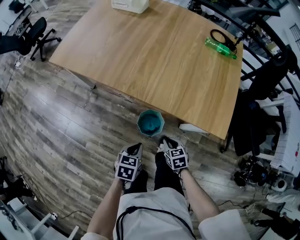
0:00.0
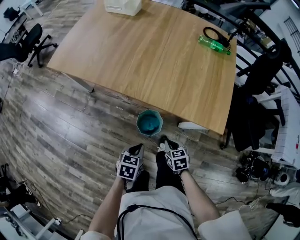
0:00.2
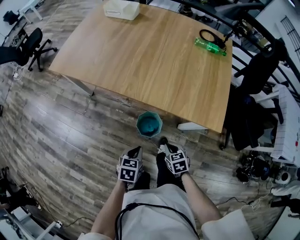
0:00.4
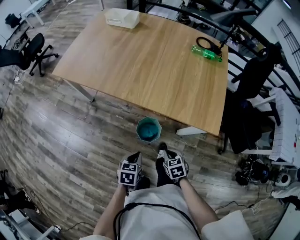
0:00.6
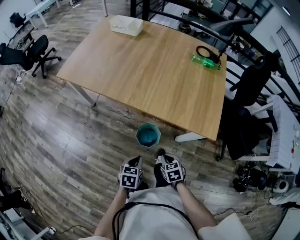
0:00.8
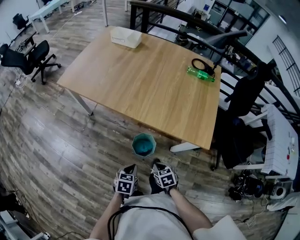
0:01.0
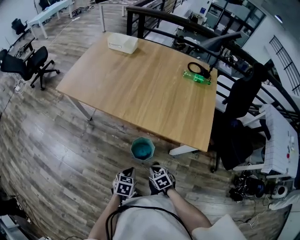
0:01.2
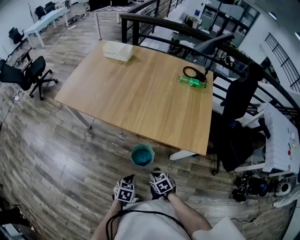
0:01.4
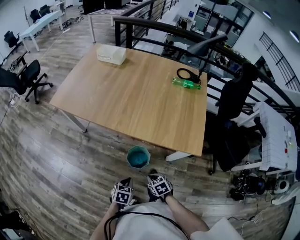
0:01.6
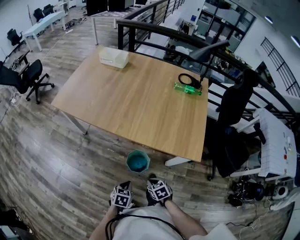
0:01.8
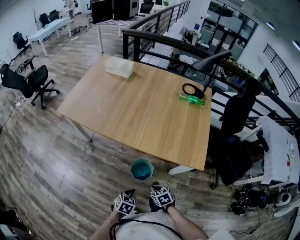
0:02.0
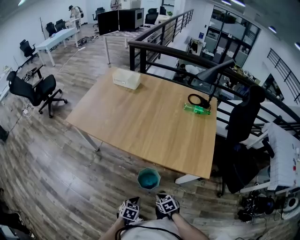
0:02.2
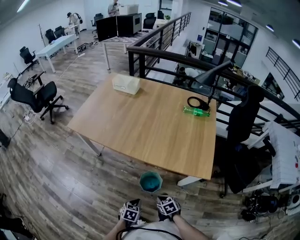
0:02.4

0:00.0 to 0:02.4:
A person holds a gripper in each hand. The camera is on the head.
0:00.0 to 0:01.2: Both grippers travel together backward, some 5 cm.
0:01.2 to 0:02.4: There are only small adjustments of the grippers.

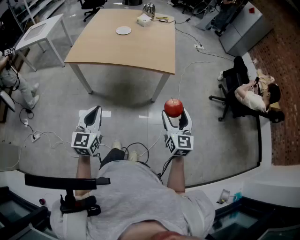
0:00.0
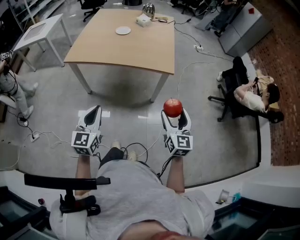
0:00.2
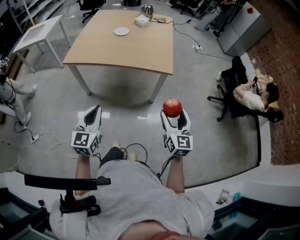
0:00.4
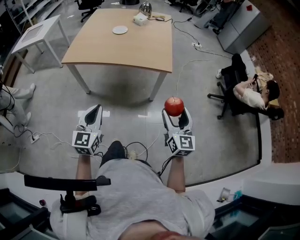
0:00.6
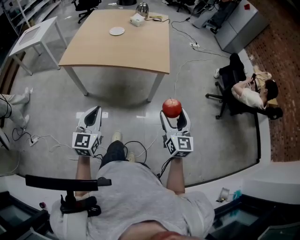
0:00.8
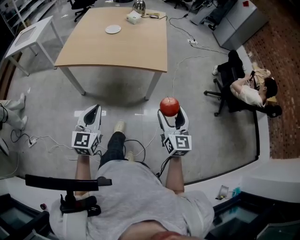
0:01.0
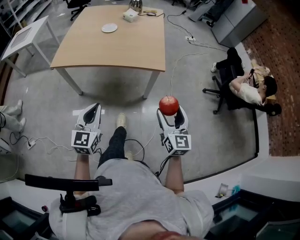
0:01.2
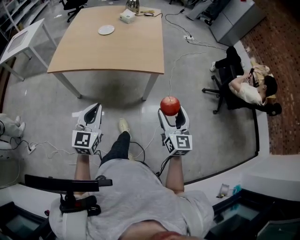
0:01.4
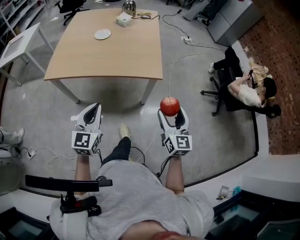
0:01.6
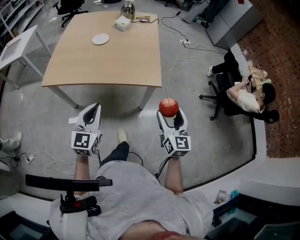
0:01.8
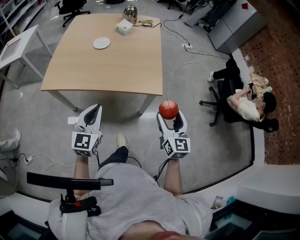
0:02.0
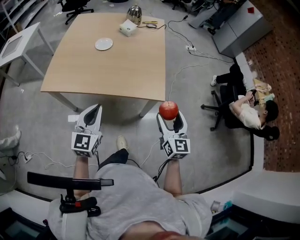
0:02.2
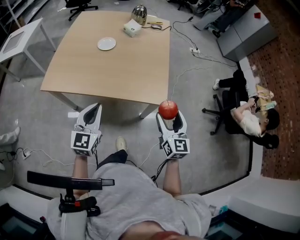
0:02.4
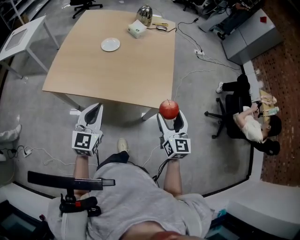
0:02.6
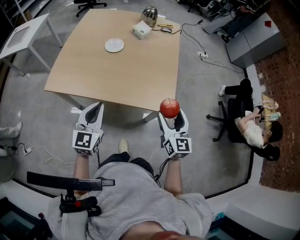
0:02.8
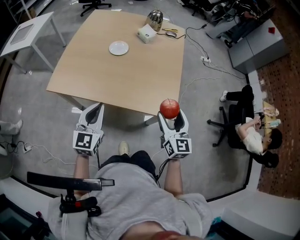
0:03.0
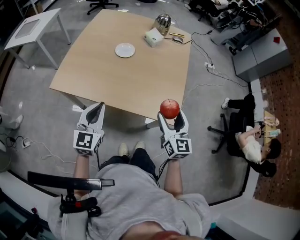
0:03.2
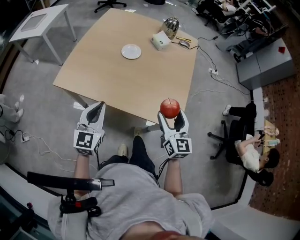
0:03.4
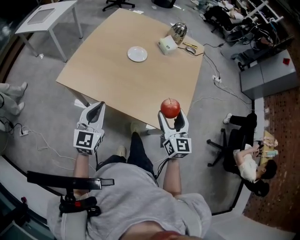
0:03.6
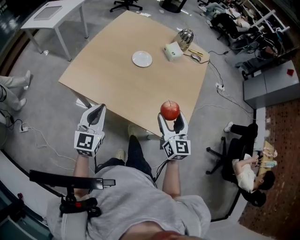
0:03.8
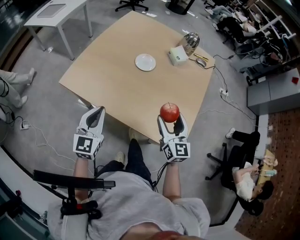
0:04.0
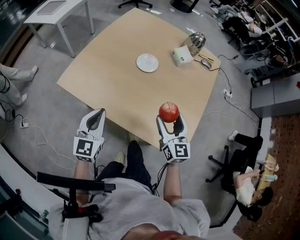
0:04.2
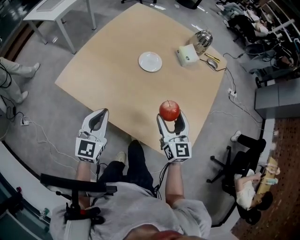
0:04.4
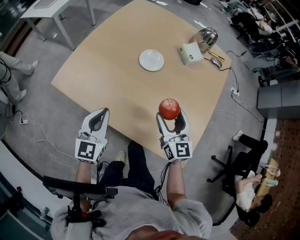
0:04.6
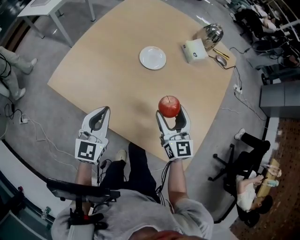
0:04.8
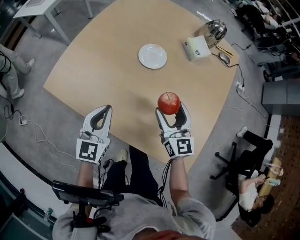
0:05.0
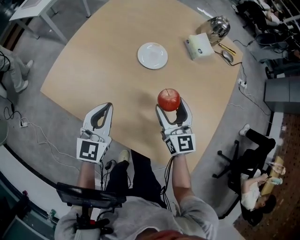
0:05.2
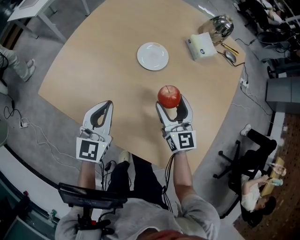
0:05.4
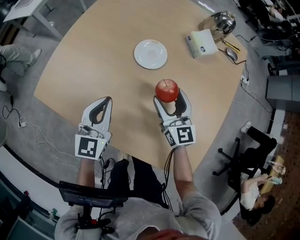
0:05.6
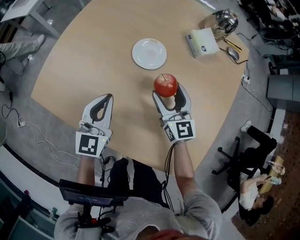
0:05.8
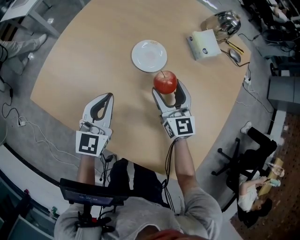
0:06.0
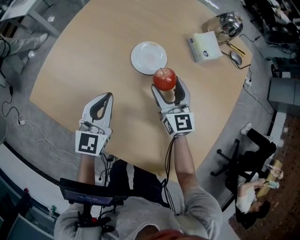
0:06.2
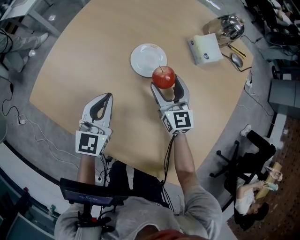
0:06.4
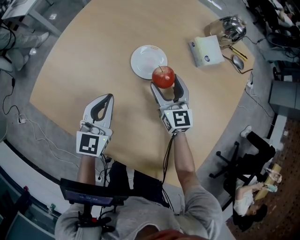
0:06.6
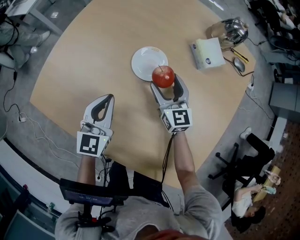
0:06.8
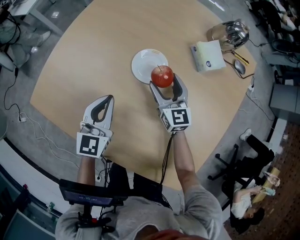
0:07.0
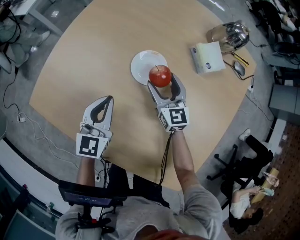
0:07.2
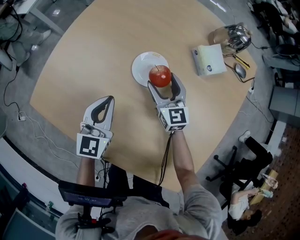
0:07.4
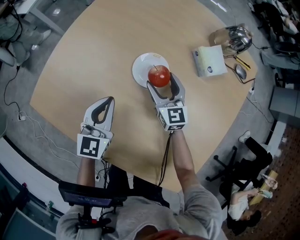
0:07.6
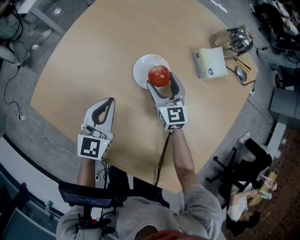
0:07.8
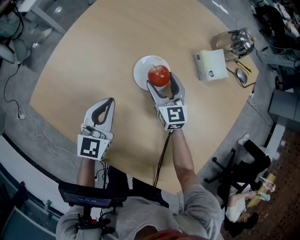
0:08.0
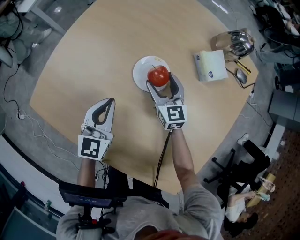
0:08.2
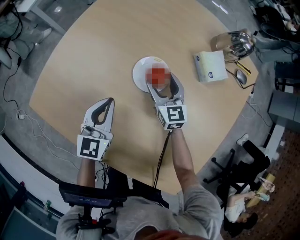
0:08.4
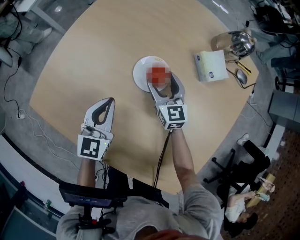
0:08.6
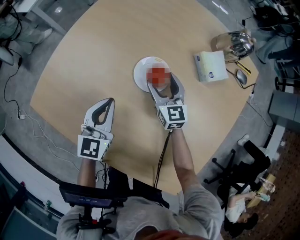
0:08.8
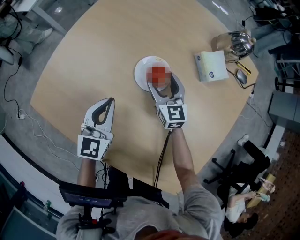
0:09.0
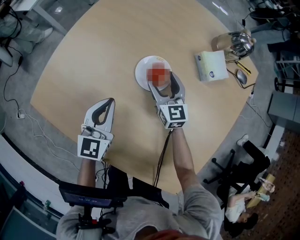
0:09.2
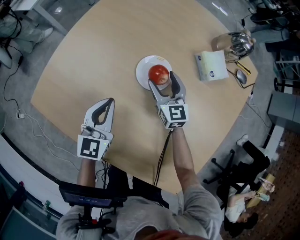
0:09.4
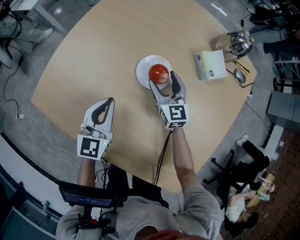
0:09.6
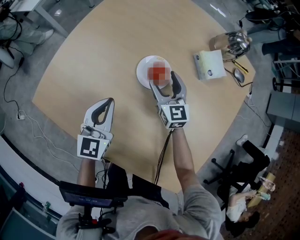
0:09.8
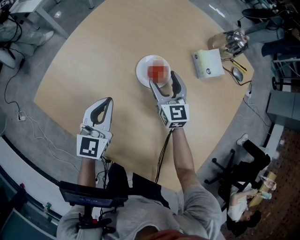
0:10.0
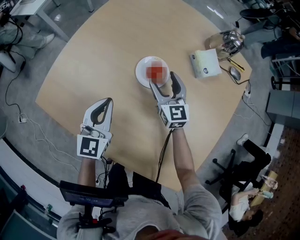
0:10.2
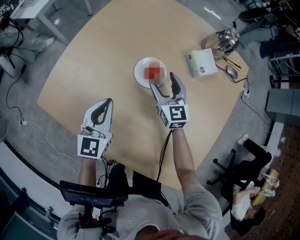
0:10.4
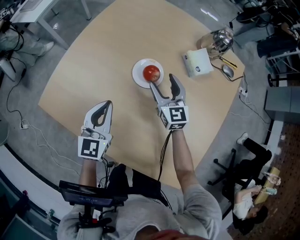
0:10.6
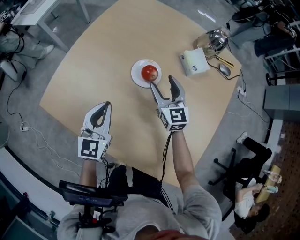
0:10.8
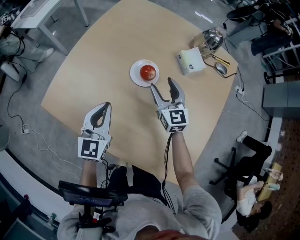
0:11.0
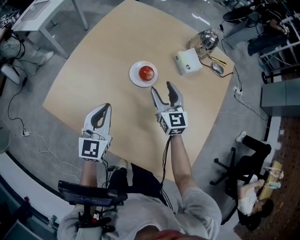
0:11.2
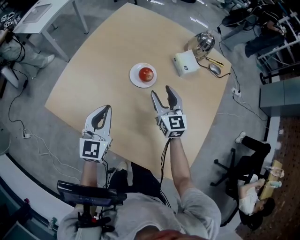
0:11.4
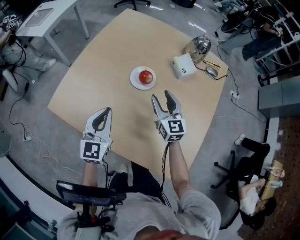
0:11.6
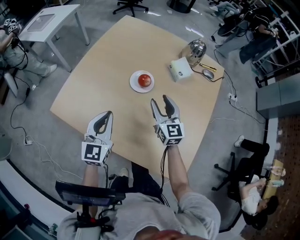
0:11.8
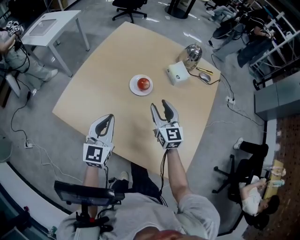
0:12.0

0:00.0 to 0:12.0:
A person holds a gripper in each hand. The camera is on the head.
0:00.0 to 0:01.6: The left gripper travels forward and to the right by approximately 15 cm. Meanwhile the right gripper is displaced forward by about 10 cm.
0:01.6 to 0:03.0: Both grippers move forward, some 25 cm.
0:03.0 to 0:04.4: The right gripper travels forward and to the left by roughly 25 cm, and changes its angle by roughly 20 degrees; the left gripper goes roughly 15 cm forward, downward and to the left.
0:04.4 to 0:06.0: Both grippers move forward and downward, some 25 cm.
0:06.0 to 0:07.6: The left gripper travels forward by some 5 cm, while the right gripper goes approximately 10 cm forward.
0:07.6 to 0:09.0: There are only small adjustments of the grippers.
0:09.0 to 0:10.4: Both grippers travel together upward, some 5 cm.
0:10.4 to 0:12.0: Both grippers travel together backward and upward, about 15 cm. The right gripper closes up.

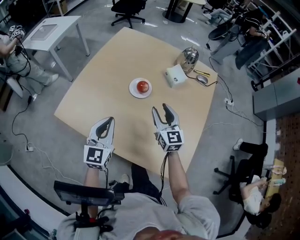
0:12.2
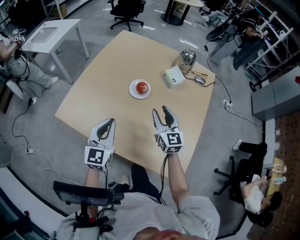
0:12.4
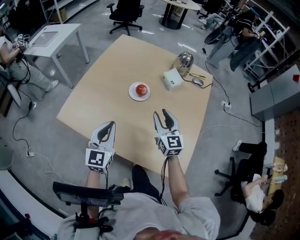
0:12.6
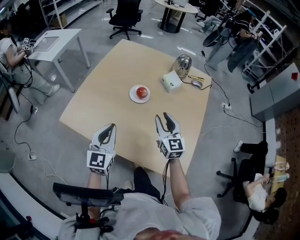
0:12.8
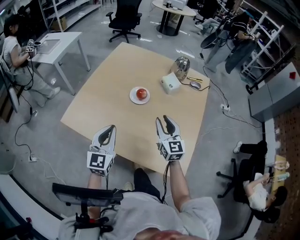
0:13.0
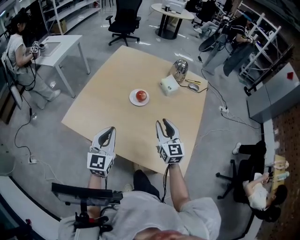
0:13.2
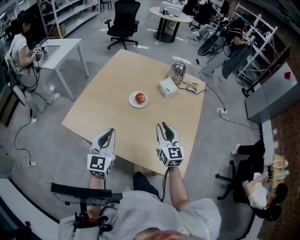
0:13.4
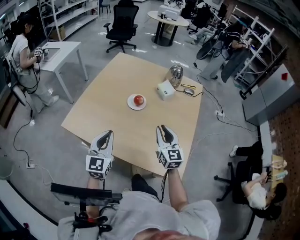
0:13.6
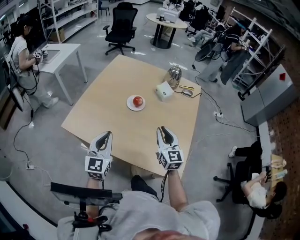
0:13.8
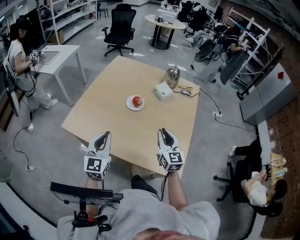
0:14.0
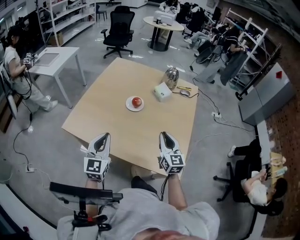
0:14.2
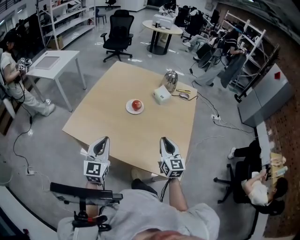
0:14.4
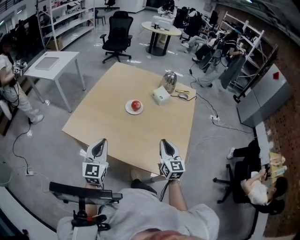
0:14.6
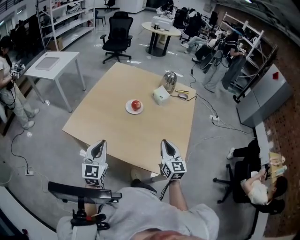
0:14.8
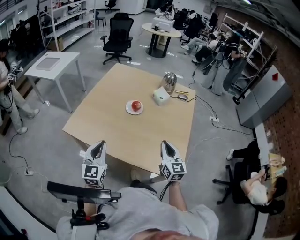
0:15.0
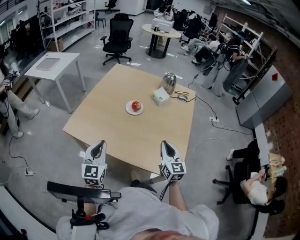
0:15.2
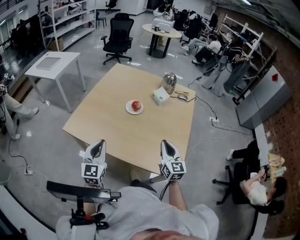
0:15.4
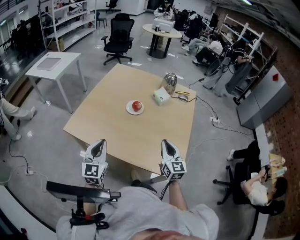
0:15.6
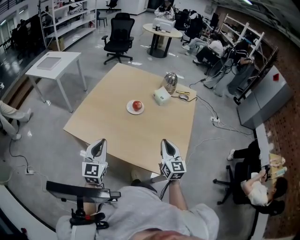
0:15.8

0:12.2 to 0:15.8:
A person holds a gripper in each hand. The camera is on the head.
0:12.2 to 0:14.0: Both grippers move backward and upward, about 15 cm. The right gripper closes its fingers.
0:14.0 to 0:15.8: The right gripper shifts some 5 cm backward, while the left gripper shifts by some 5 cm.

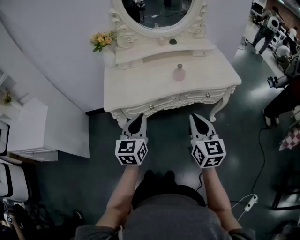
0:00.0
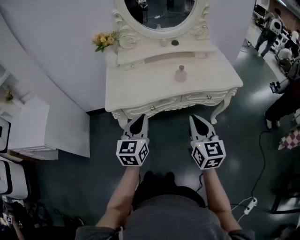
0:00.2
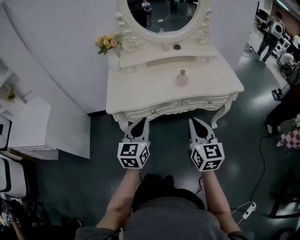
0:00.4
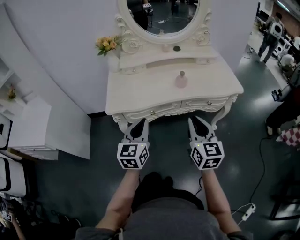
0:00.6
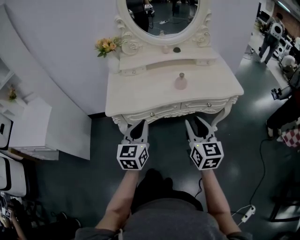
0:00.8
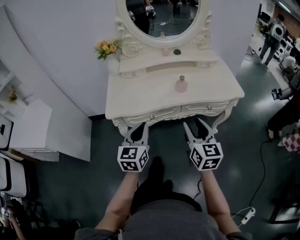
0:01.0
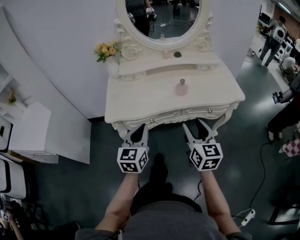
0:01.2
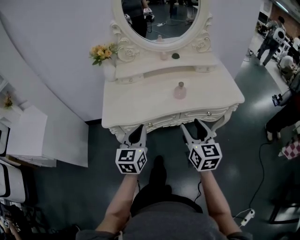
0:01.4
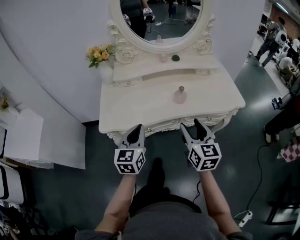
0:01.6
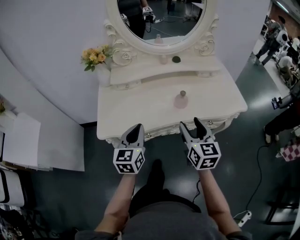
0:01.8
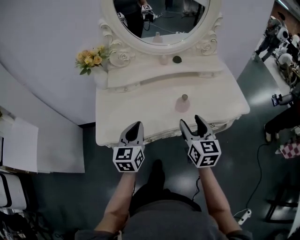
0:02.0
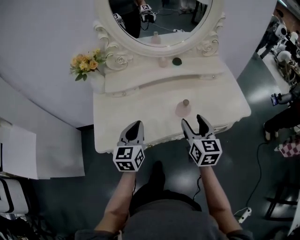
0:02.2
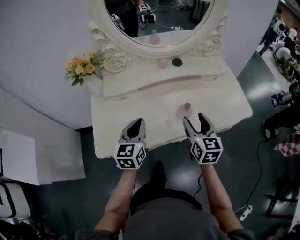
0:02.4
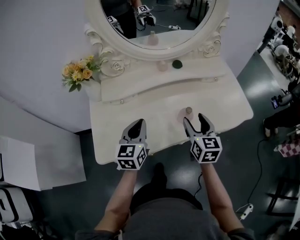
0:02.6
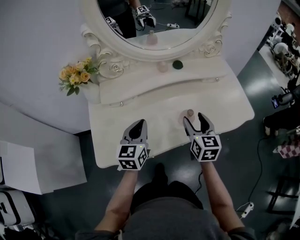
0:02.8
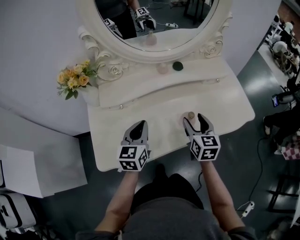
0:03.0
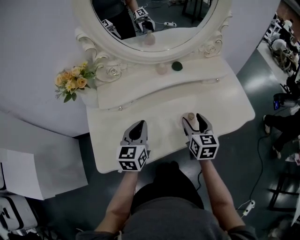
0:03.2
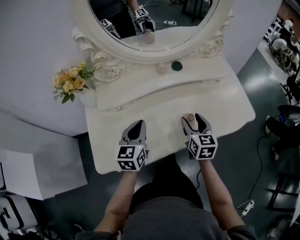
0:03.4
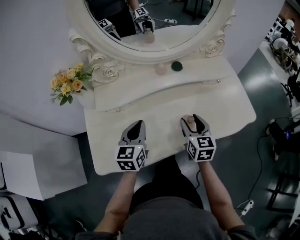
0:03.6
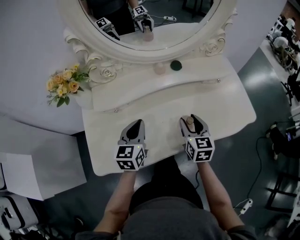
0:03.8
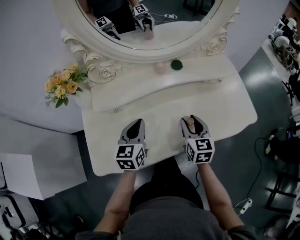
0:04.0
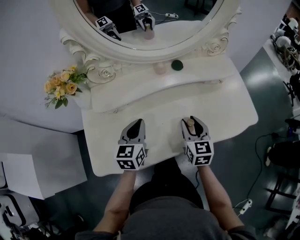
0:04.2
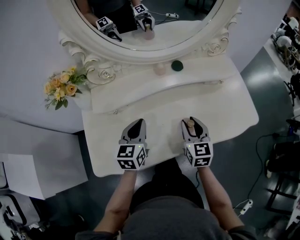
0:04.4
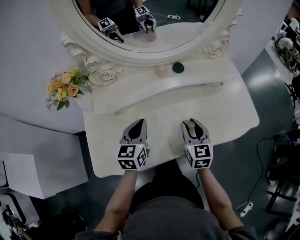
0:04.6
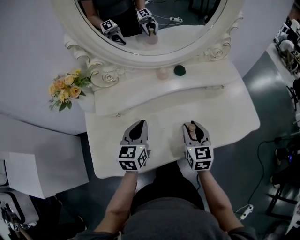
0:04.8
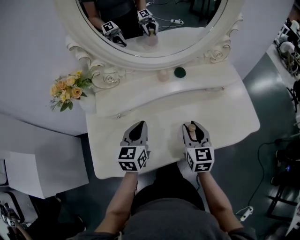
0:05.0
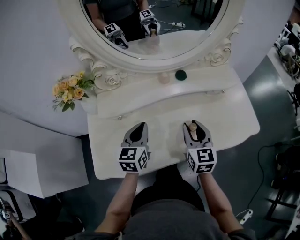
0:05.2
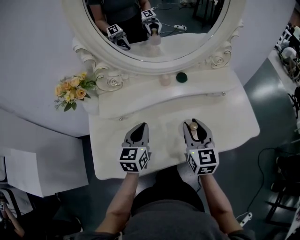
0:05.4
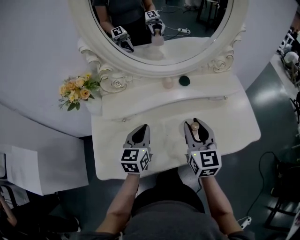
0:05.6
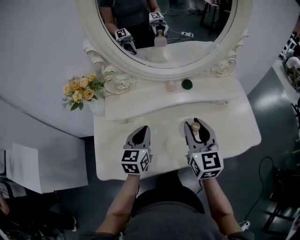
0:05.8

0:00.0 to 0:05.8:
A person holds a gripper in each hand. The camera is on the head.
0:00.0 to 0:01.4: The two grippers go some 5 cm forward. The right gripper opens.
0:01.4 to 0:02.8: The two grippers go some 25 cm forward.
0:02.8 to 0:04.4: The right gripper moves roughly 5 cm, and closes, while the left gripper heads forward, covering roughly 5 cm.
0:04.4 to 0:05.8: The right gripper shifts approximately 15 cm upward.
